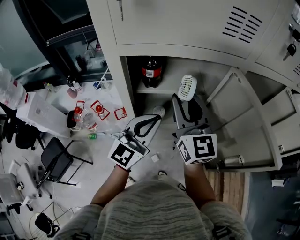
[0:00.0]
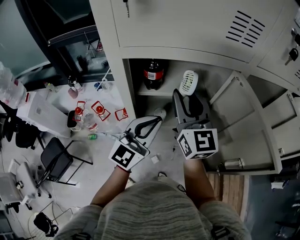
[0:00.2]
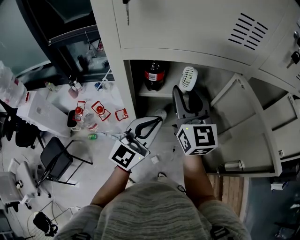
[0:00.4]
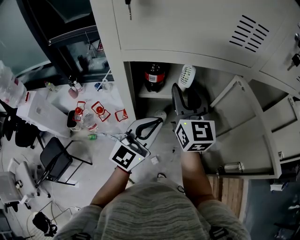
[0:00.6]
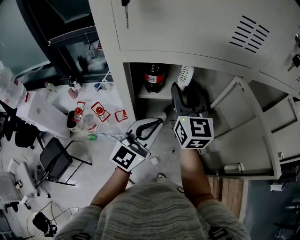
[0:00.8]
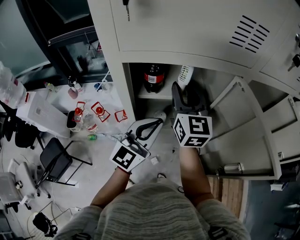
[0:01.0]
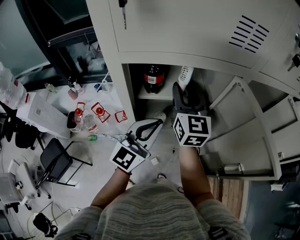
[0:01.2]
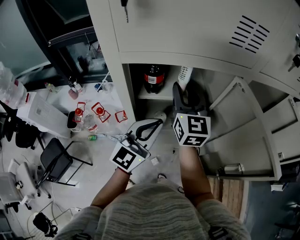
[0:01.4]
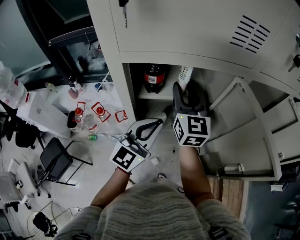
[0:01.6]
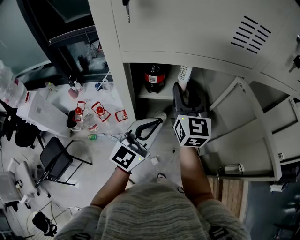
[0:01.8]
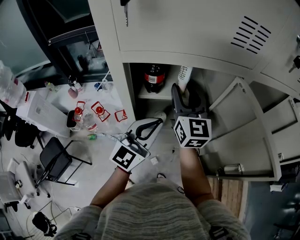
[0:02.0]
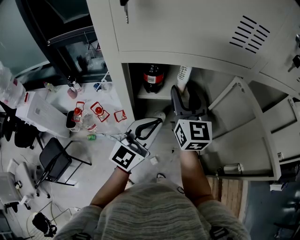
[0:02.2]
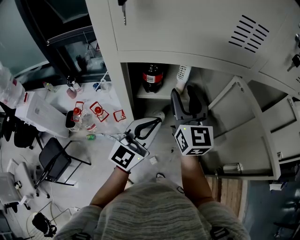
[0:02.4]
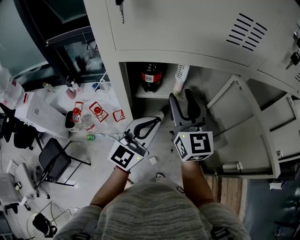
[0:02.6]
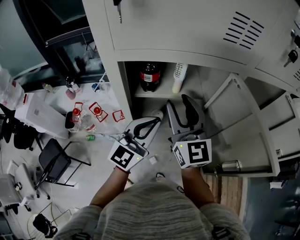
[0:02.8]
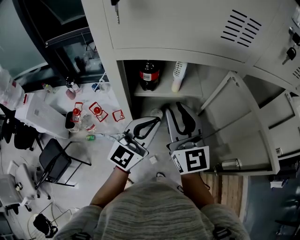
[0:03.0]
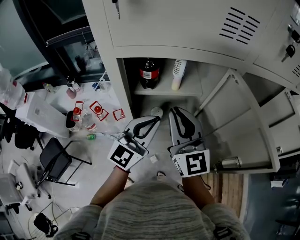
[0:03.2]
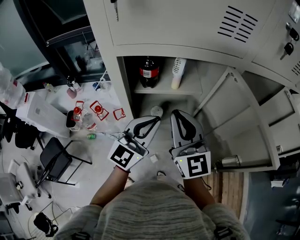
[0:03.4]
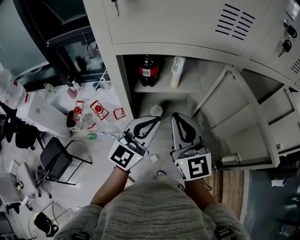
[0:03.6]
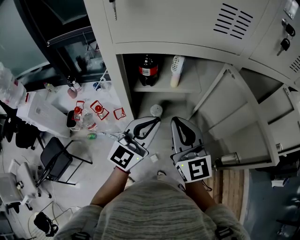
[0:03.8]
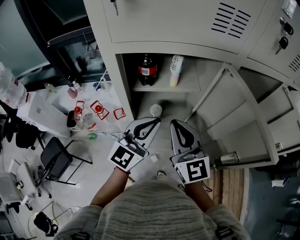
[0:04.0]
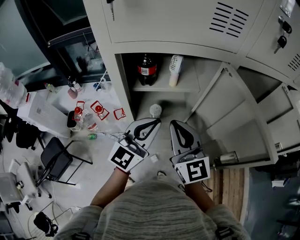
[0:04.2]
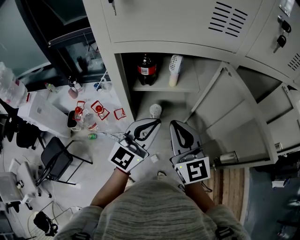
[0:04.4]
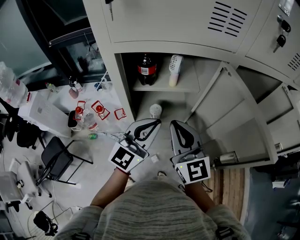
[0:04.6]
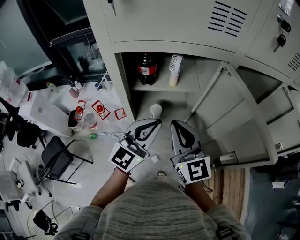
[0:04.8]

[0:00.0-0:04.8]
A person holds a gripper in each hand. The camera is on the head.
0:00.0 to 0:01.6: The right gripper shifts approximately 10 cm forward.
0:01.6 to 0:03.2: The right gripper moves backward, approximately 10 cm.
0:03.2 to 0:04.8: The right gripper shifts by about 5 cm.

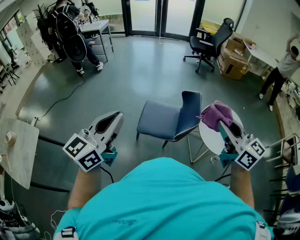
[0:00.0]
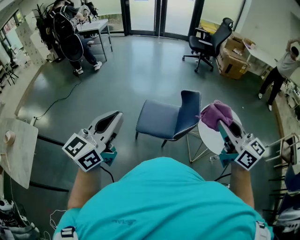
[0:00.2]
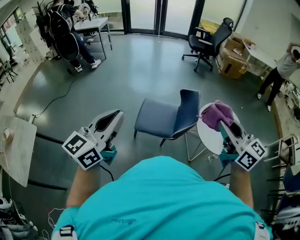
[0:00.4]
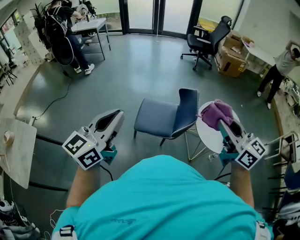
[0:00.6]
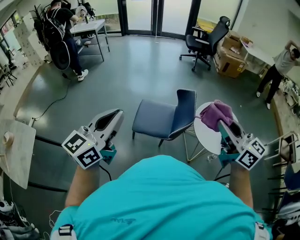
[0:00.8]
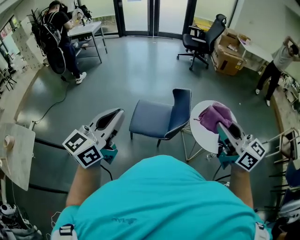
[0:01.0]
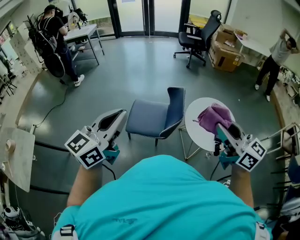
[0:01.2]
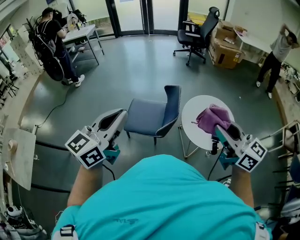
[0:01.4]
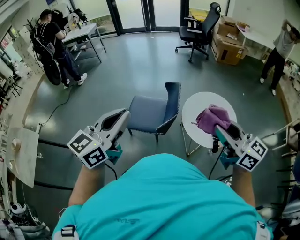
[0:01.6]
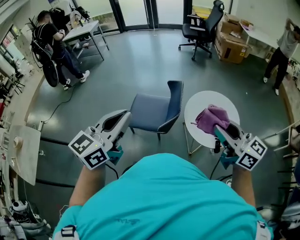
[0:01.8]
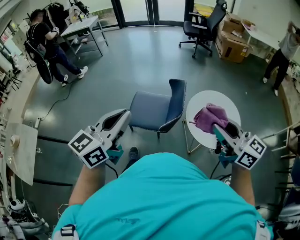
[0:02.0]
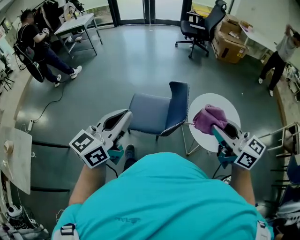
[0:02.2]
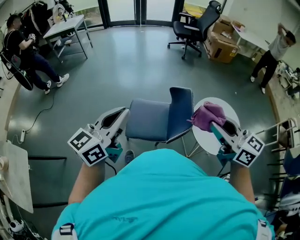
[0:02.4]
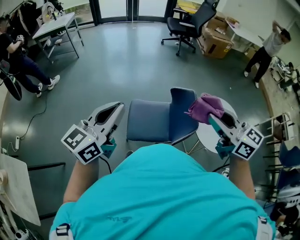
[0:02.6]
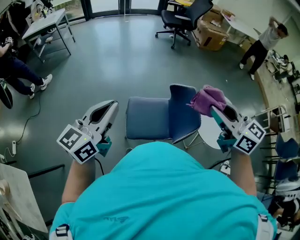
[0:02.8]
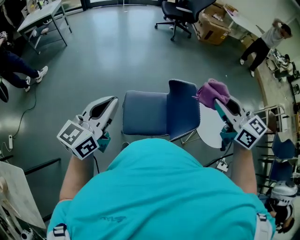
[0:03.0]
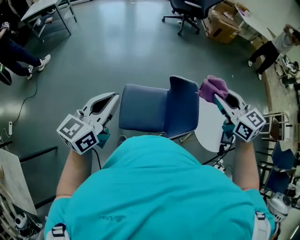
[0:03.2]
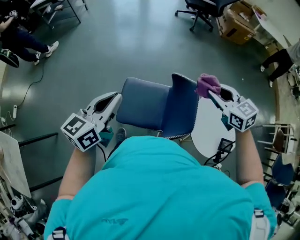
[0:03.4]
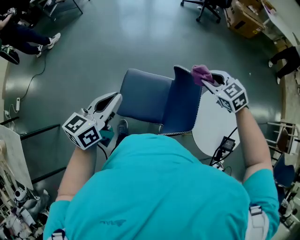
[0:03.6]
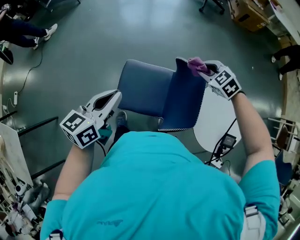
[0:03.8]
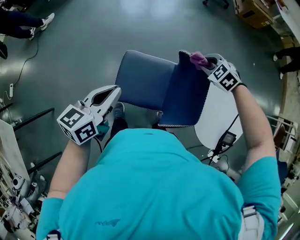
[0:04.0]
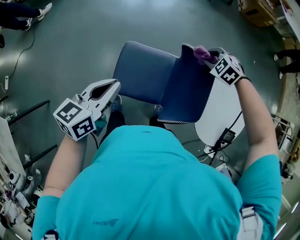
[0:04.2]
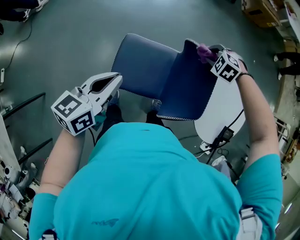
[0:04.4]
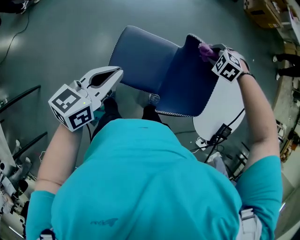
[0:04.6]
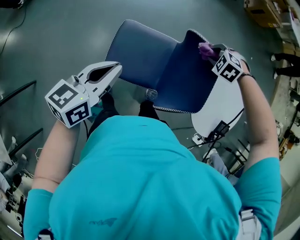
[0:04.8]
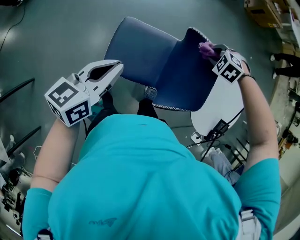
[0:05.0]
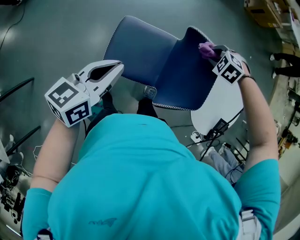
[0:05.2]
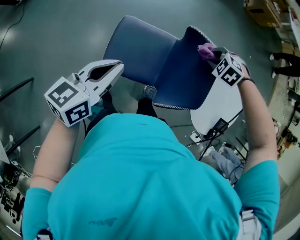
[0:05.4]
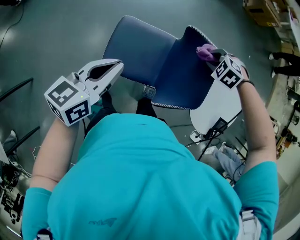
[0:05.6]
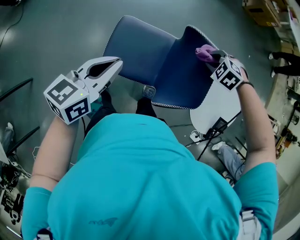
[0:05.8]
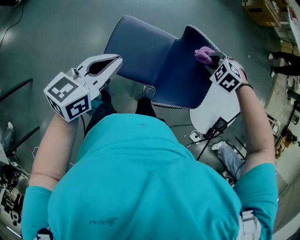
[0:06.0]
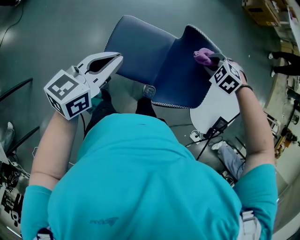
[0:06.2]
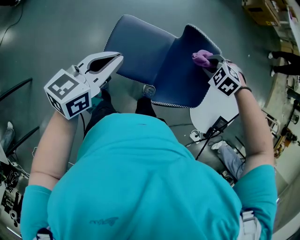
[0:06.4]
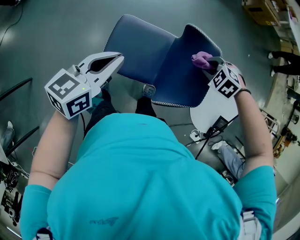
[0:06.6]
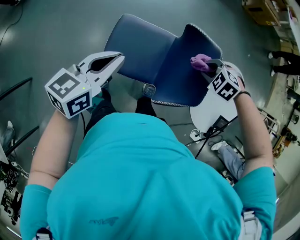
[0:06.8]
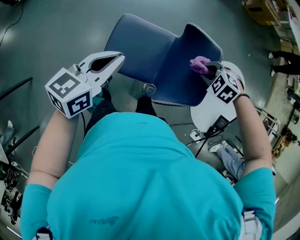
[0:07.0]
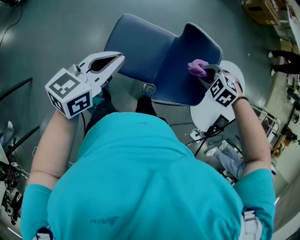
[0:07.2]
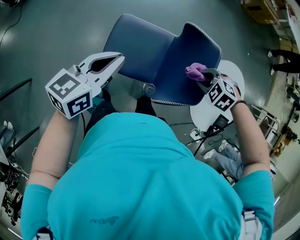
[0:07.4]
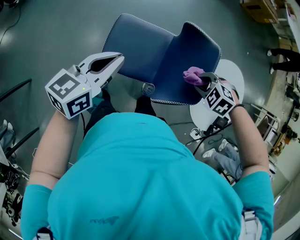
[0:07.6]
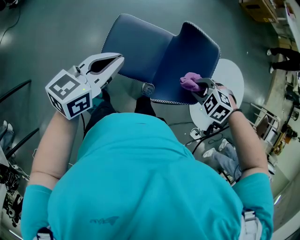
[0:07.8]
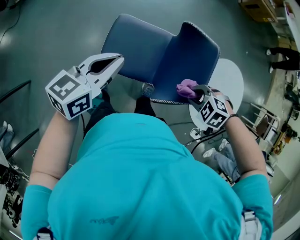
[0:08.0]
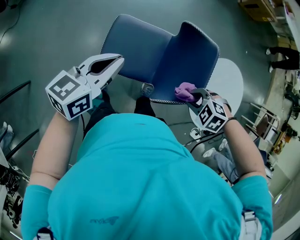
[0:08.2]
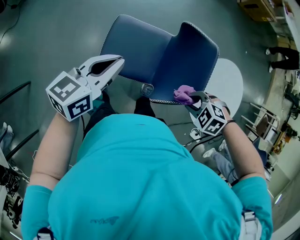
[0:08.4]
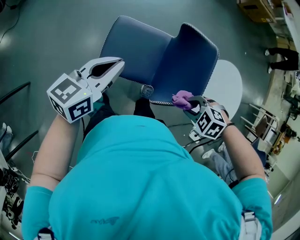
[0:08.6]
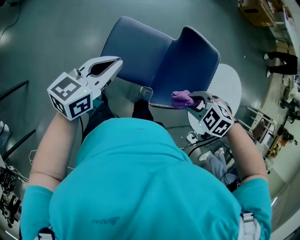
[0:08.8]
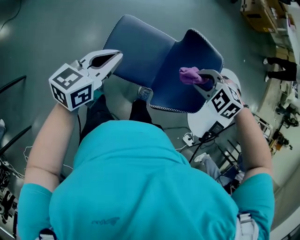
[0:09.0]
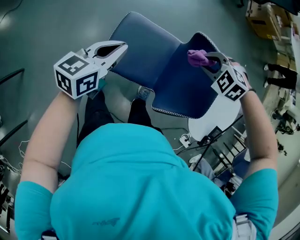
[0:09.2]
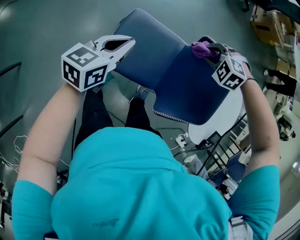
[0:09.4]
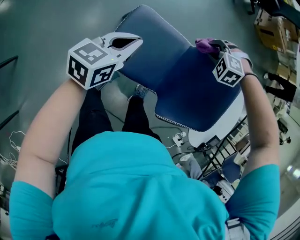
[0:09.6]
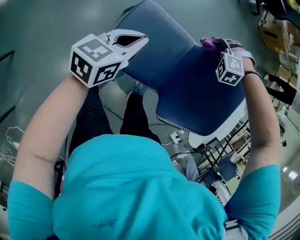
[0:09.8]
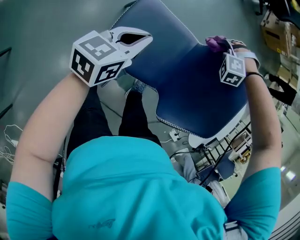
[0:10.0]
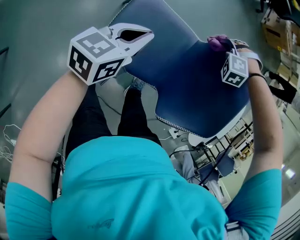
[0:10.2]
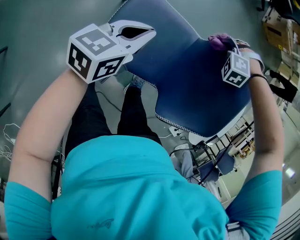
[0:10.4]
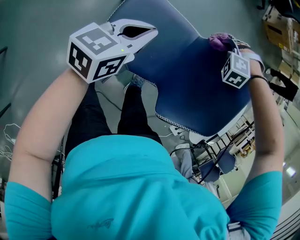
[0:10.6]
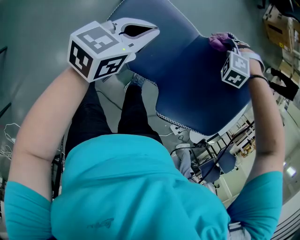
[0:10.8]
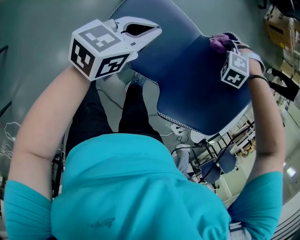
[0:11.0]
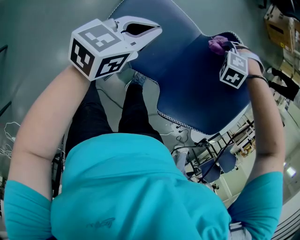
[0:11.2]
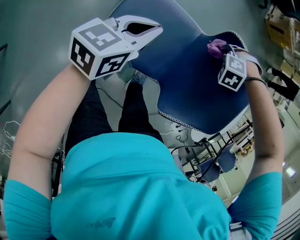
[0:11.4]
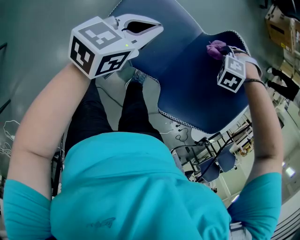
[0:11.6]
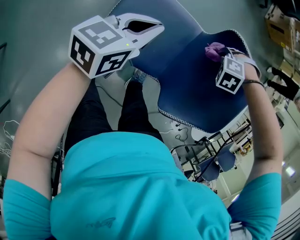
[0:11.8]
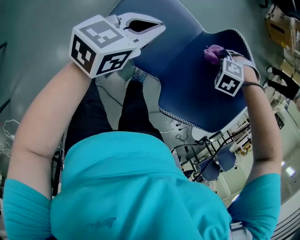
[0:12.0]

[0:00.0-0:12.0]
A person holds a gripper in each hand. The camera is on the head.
0:00.0 to 0:01.6: The left gripper shifts by approximately 20 cm.
0:01.6 to 0:03.0: The left gripper moves roughly 40 cm.
0:03.0 to 0:04.4: The left gripper reaches approximately 10 cm upward, then returns, and swivels some 30 degrees.
0:07.6 to 0:09.0: The left gripper goes some 5 cm downward.
0:09.0 to 0:10.4: The left gripper moves downward, approximately 15 cm.

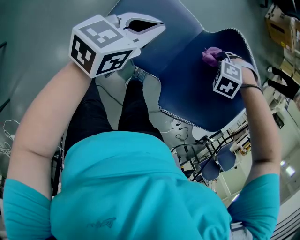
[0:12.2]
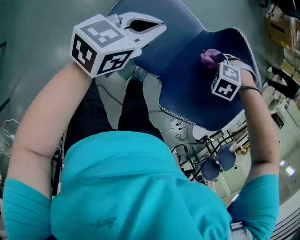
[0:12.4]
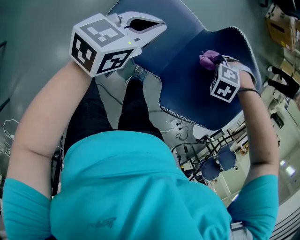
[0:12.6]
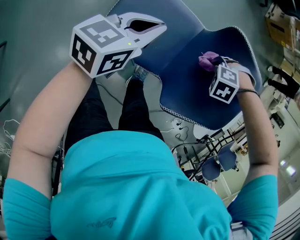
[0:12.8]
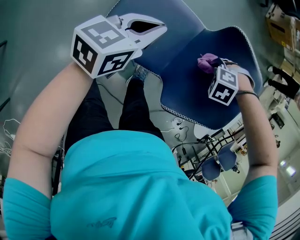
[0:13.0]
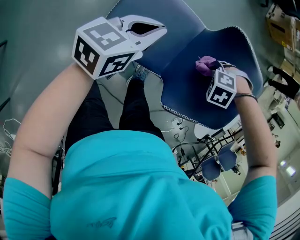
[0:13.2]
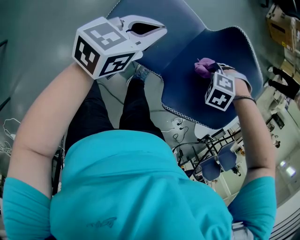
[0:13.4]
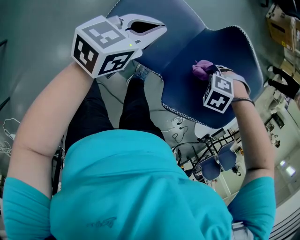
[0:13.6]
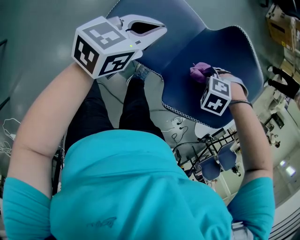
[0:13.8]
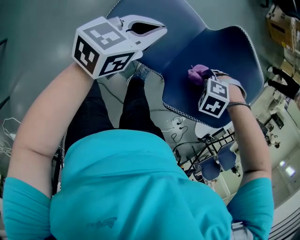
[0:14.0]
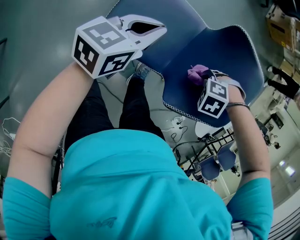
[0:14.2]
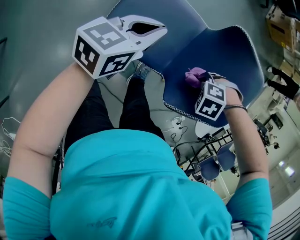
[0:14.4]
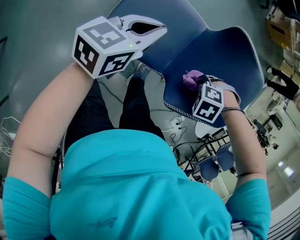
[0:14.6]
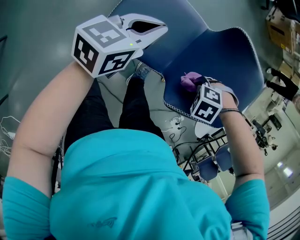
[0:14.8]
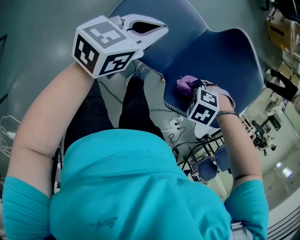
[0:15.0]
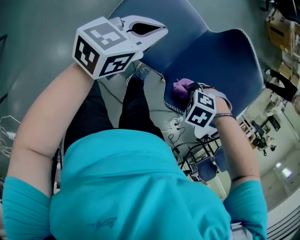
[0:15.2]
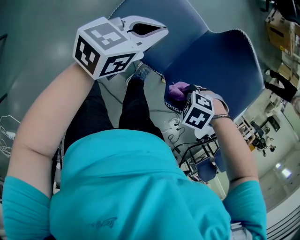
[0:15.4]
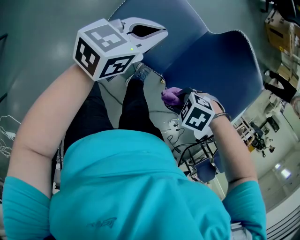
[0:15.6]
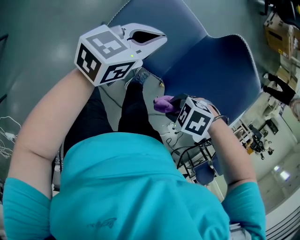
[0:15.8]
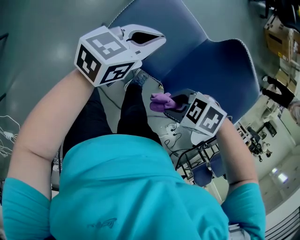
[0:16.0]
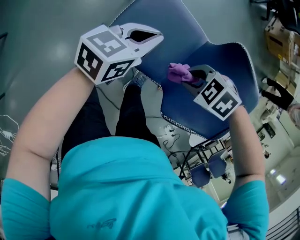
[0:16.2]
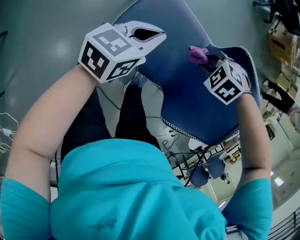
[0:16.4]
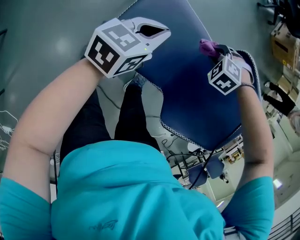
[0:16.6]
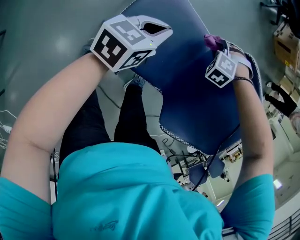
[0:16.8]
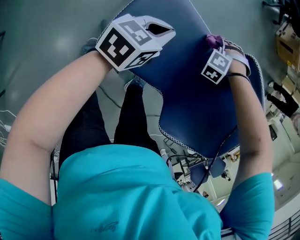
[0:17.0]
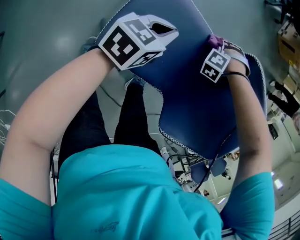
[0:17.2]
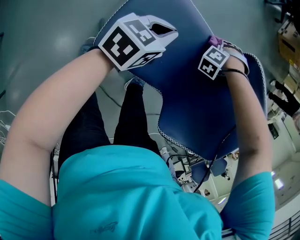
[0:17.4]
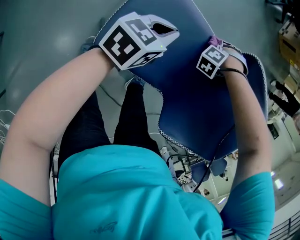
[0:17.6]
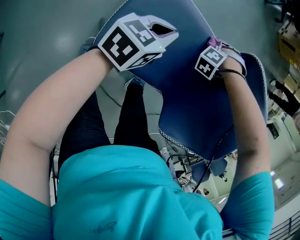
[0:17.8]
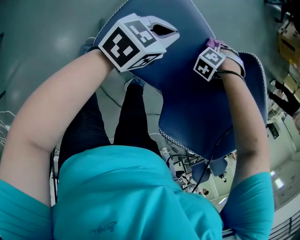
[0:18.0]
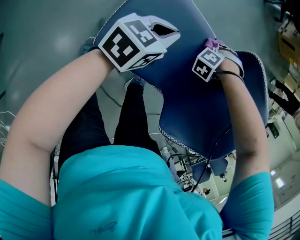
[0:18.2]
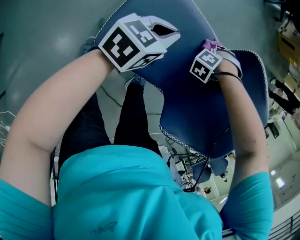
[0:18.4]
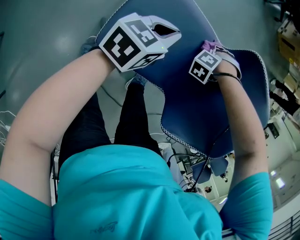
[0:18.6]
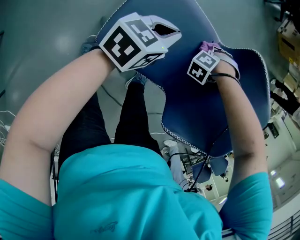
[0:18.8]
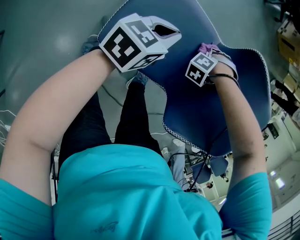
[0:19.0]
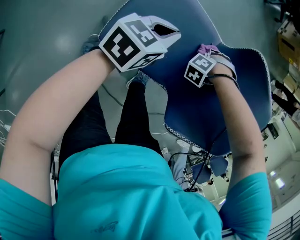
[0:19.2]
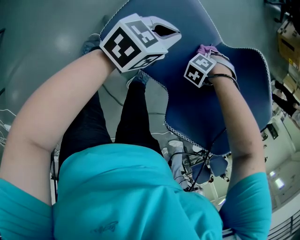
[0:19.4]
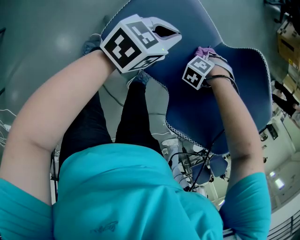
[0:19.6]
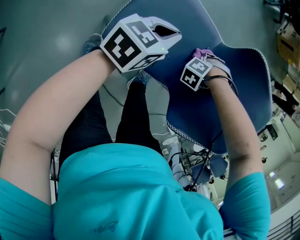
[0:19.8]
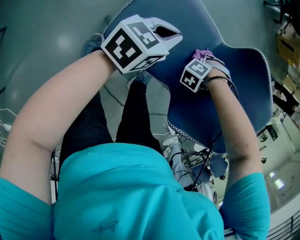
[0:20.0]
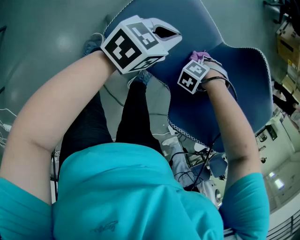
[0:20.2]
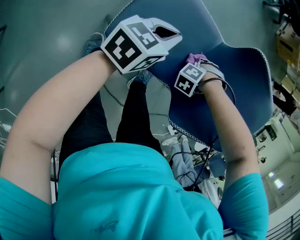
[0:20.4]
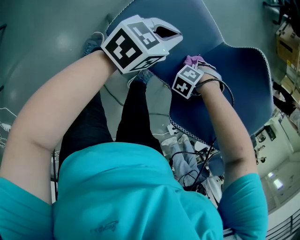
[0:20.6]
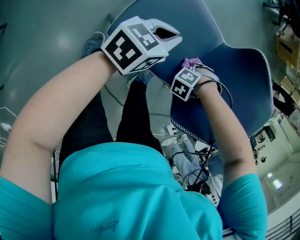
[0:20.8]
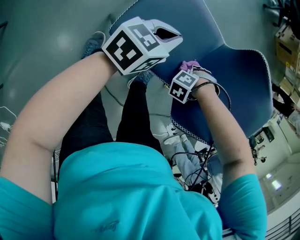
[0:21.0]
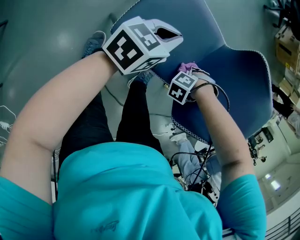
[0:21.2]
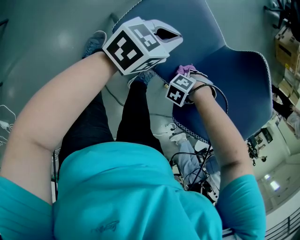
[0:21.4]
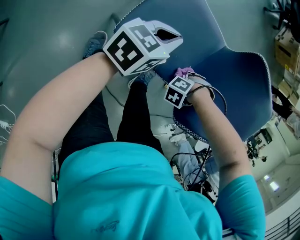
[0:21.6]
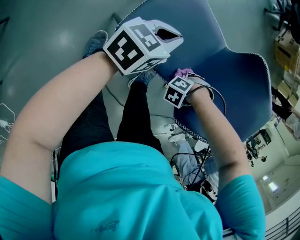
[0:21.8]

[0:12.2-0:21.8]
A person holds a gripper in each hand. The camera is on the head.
0:15.4 to 0:17.0: The left gripper travels downward by roughly 10 cm.
